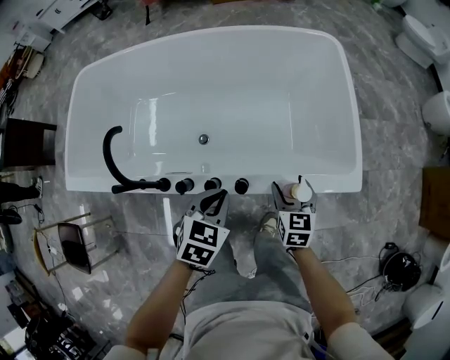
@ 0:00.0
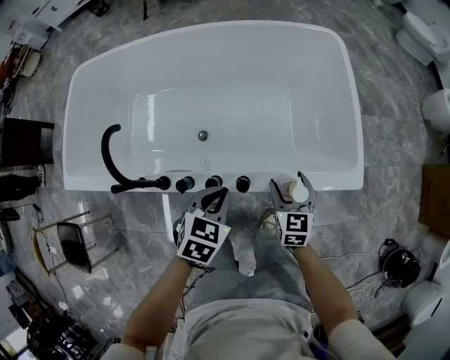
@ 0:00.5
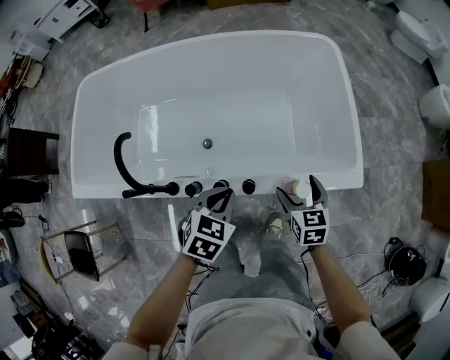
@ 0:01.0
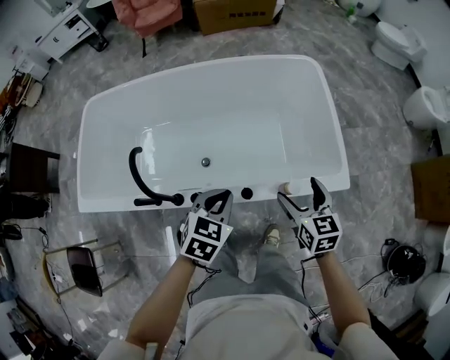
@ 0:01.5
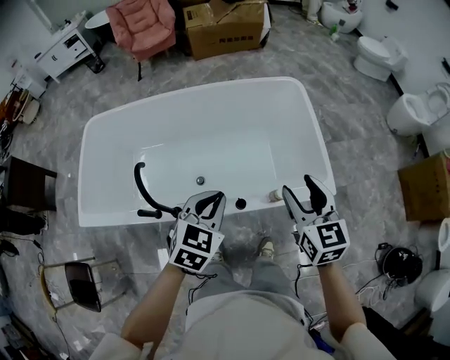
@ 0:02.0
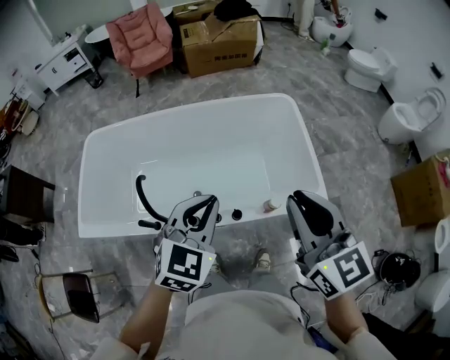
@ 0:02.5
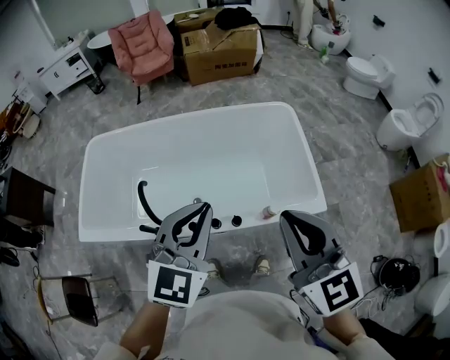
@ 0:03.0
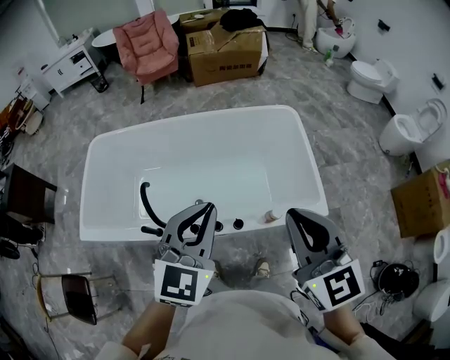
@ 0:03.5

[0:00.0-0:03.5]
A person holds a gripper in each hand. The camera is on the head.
0:00.0 to 0:02.0: The right gripper shifts about 30 cm upward. The left gripper moves upward, about 20 cm, and rotates some 20 degrees.
0:02.0 to 0:03.5: The grippers both shift upward by roughly 20 cm. The right gripper closes its fingers, while the left gripper swivels about 20 degrees.

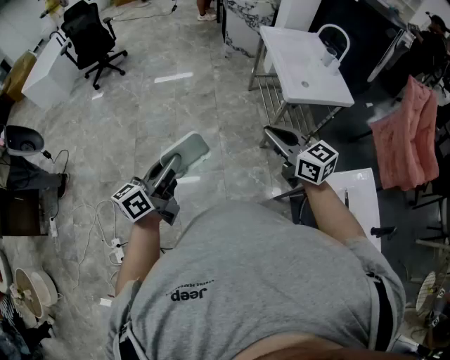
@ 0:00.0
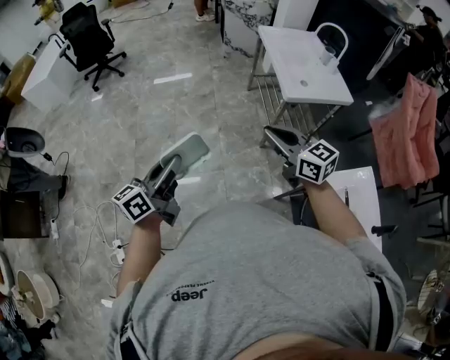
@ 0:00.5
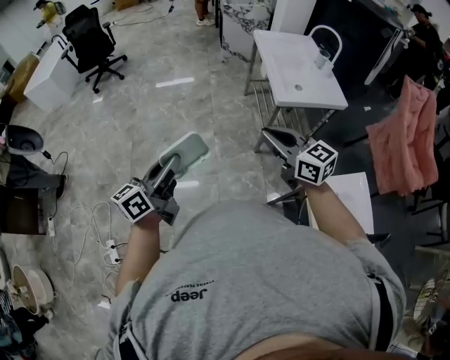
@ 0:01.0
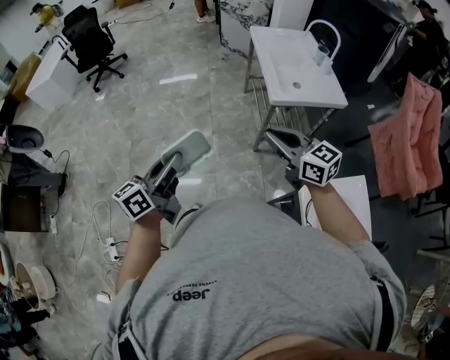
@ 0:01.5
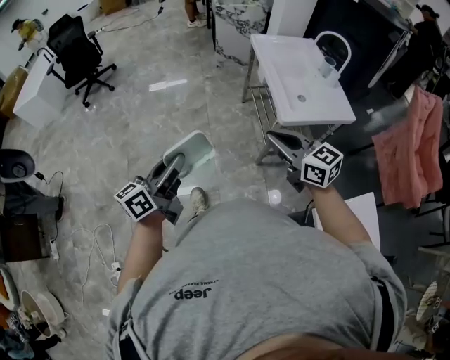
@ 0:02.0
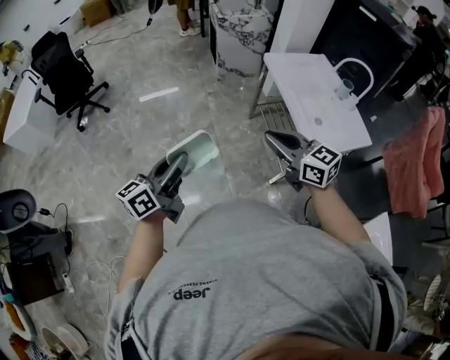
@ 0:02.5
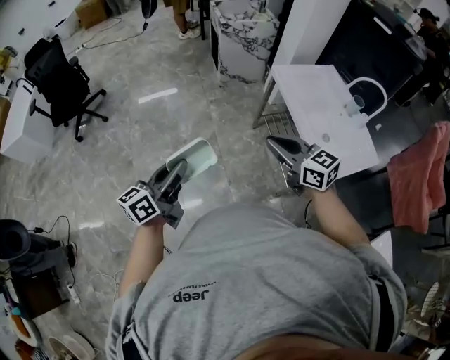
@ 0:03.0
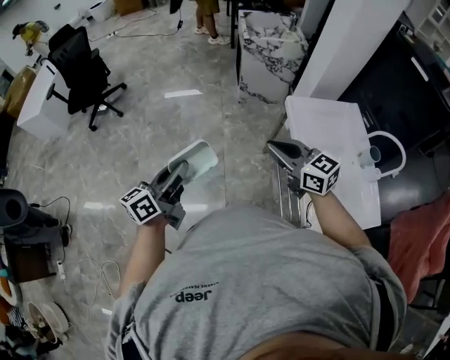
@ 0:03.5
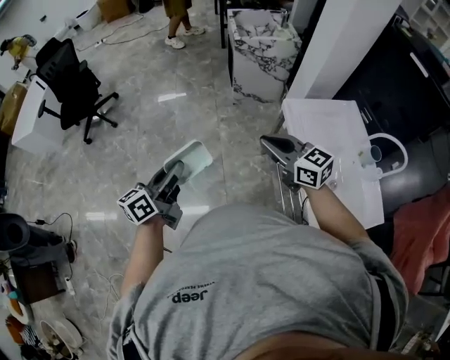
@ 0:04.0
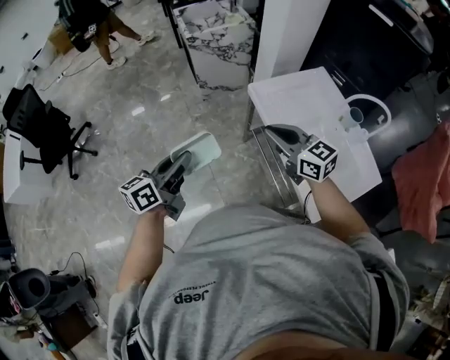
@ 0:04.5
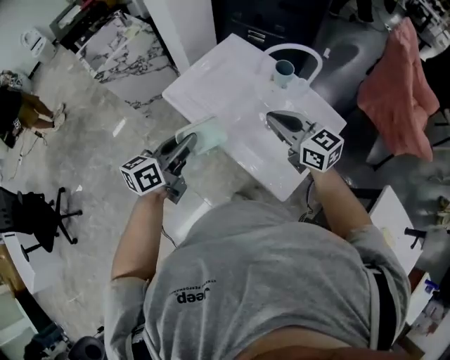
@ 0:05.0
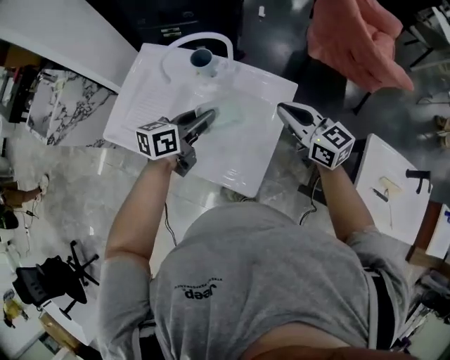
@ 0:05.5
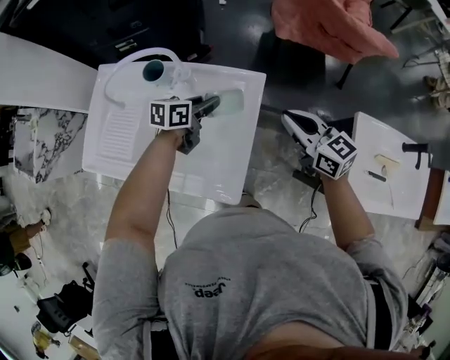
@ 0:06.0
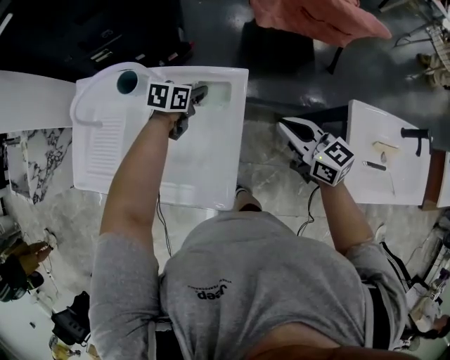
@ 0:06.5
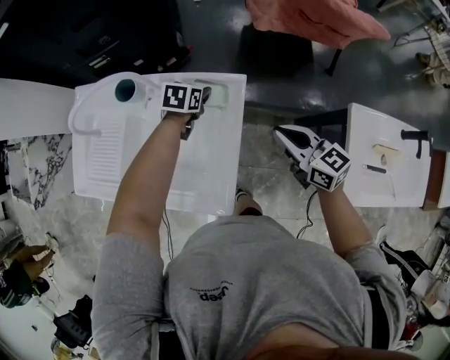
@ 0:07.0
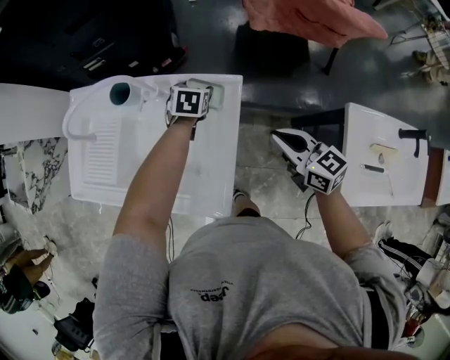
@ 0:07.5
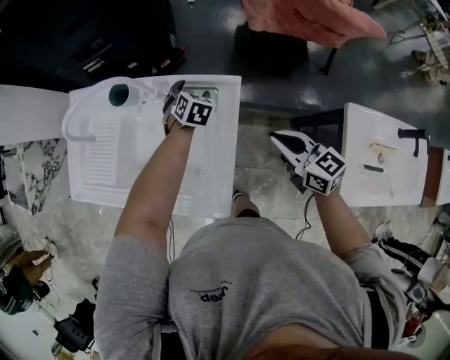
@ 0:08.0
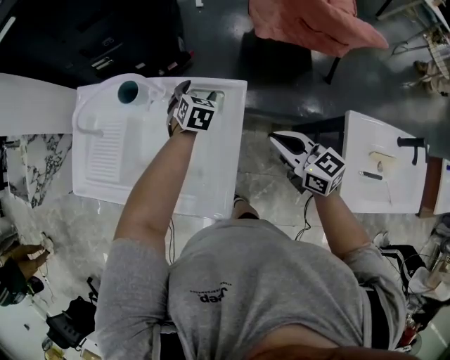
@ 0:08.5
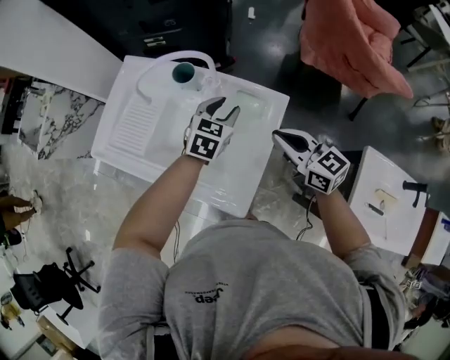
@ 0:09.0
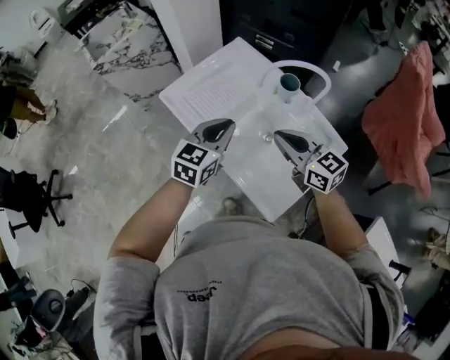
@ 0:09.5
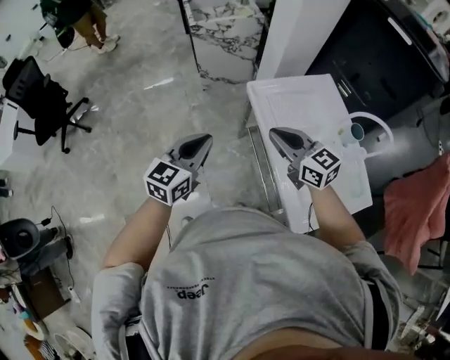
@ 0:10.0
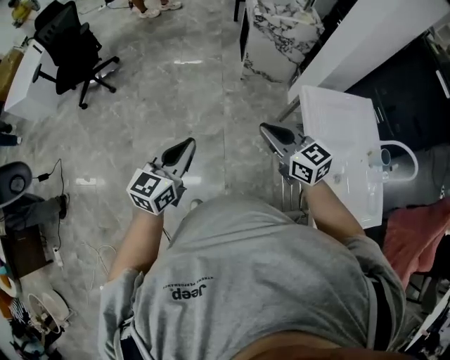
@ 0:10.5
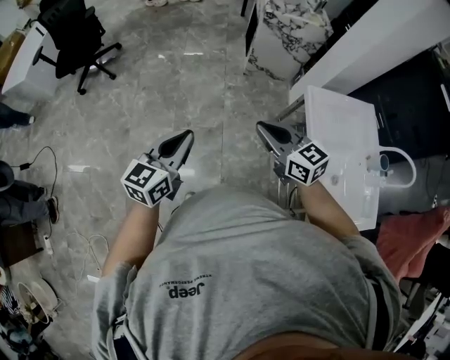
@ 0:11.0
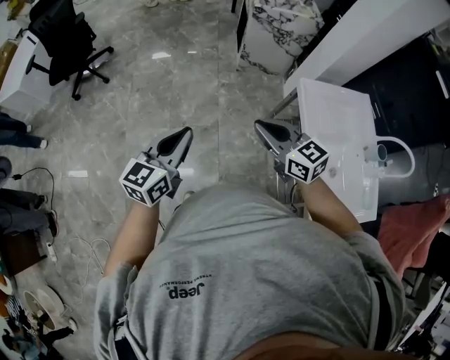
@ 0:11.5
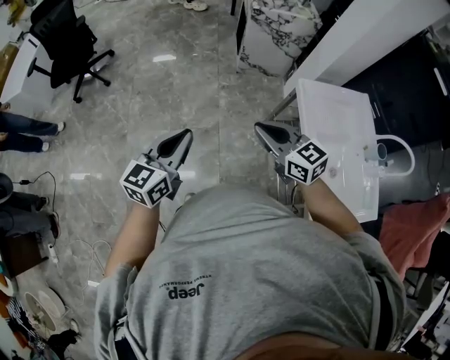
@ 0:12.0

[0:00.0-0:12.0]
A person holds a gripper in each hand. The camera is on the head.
0:00.0 to 0:02.0: The grippers both shift forward and to the right by some 20 cm.
0:02.0 to 0:04.0: Both grippers are carried forward, about 60 cm.
0:04.0 to 0:06.0: Both grippers are carried some 70 cm. The left gripper changes its angle by approximately 100 degrees; the right gripper swivels approximately 80 degrees.
0:06.0 to 0:08.0: The left gripper travels downward and forward by some 15 cm, turns by approximately 60 degrees, and opens. The right gripper goes about 5 cm downward.
0:08.0 to 0:10.0: Both grippers are carried approximately 60 cm. The left gripper angles its fingers upward, by some 40 degrees, and closes up; the right gripper turns by about 70 degrees.
0:10.0 to 0:12.0: The two grippers go roughly 25 cm to the left.

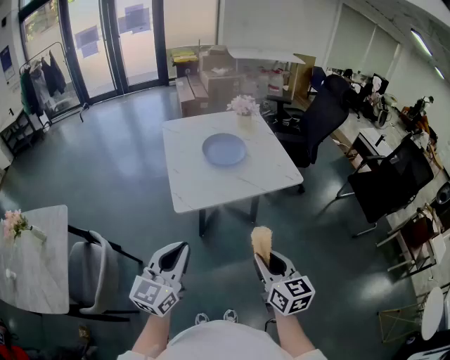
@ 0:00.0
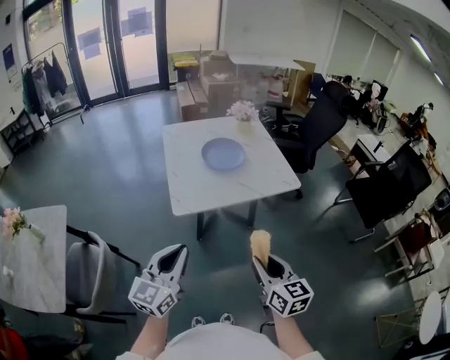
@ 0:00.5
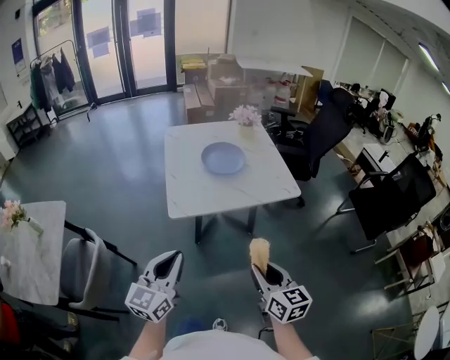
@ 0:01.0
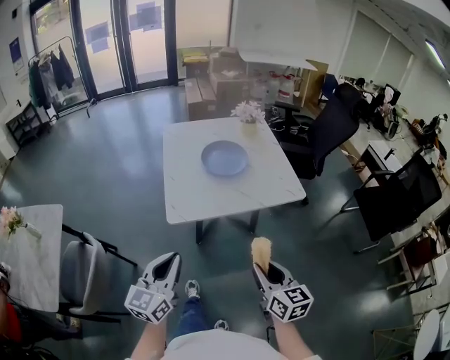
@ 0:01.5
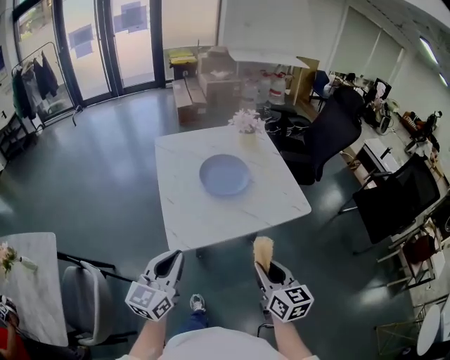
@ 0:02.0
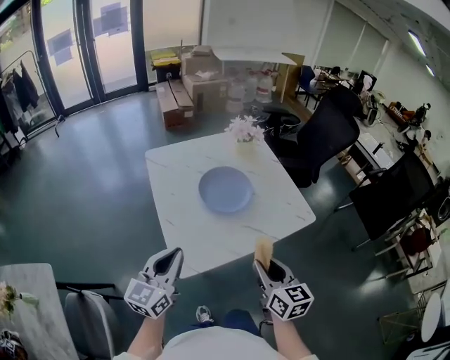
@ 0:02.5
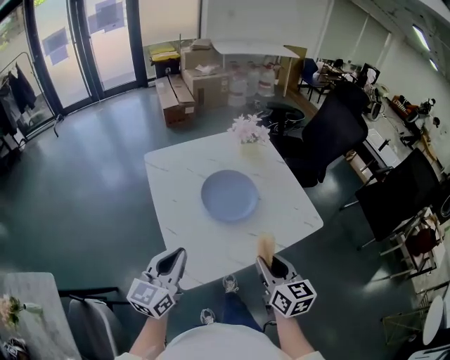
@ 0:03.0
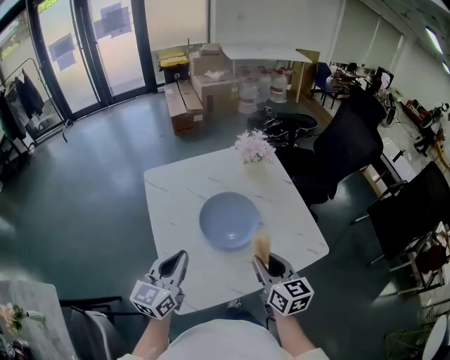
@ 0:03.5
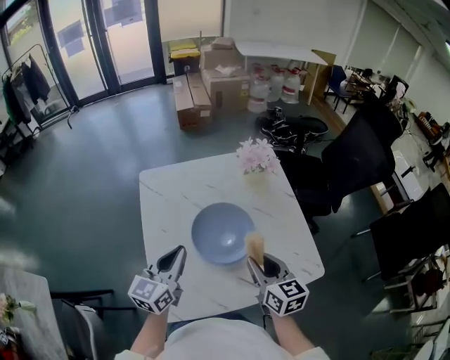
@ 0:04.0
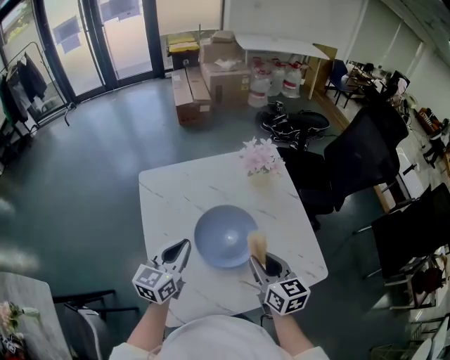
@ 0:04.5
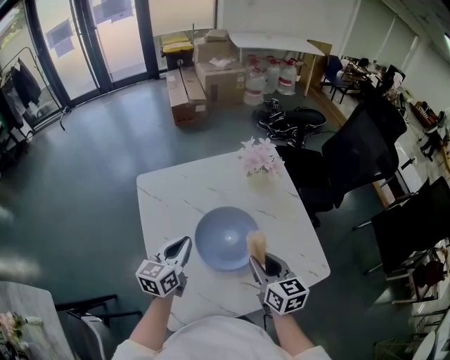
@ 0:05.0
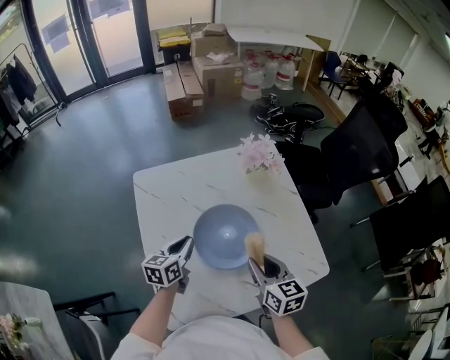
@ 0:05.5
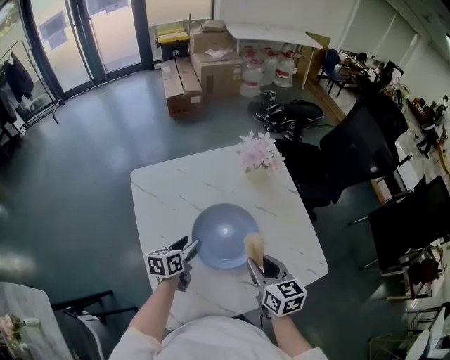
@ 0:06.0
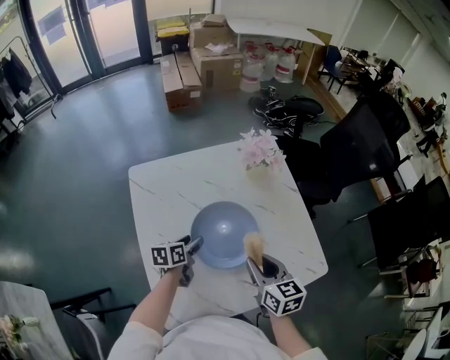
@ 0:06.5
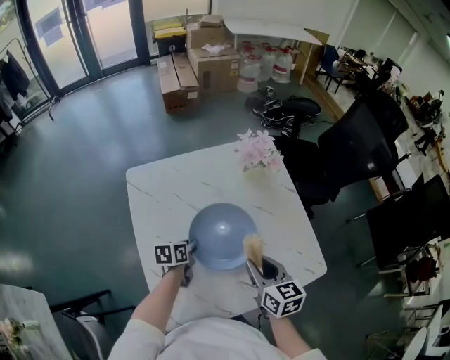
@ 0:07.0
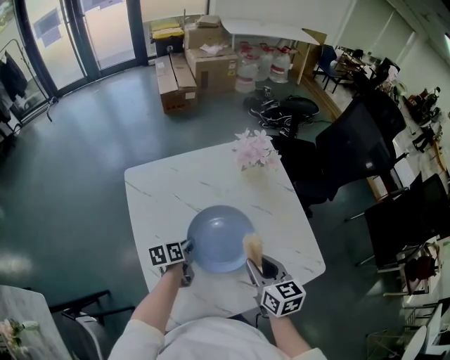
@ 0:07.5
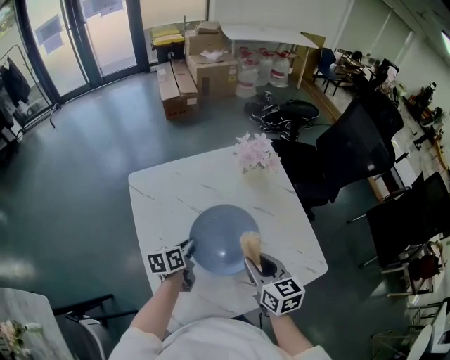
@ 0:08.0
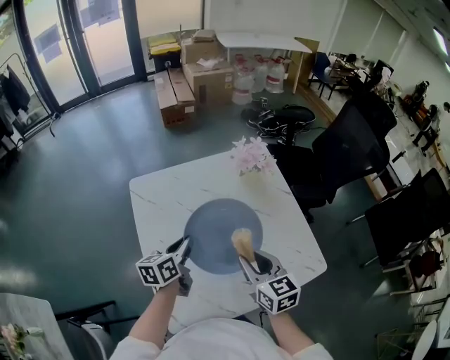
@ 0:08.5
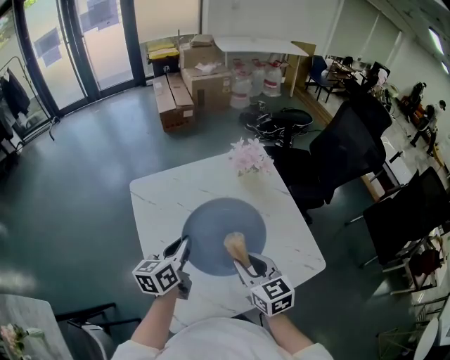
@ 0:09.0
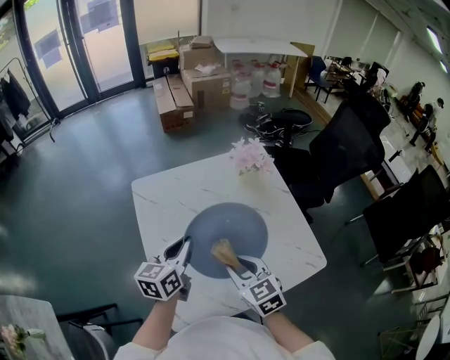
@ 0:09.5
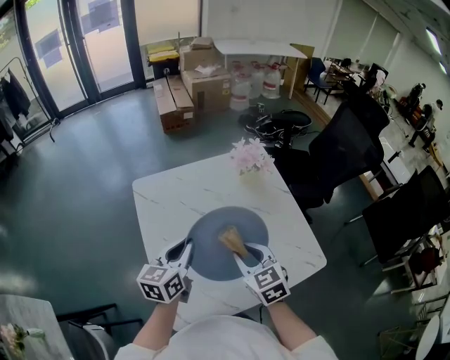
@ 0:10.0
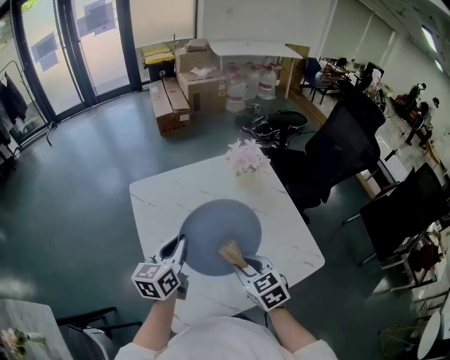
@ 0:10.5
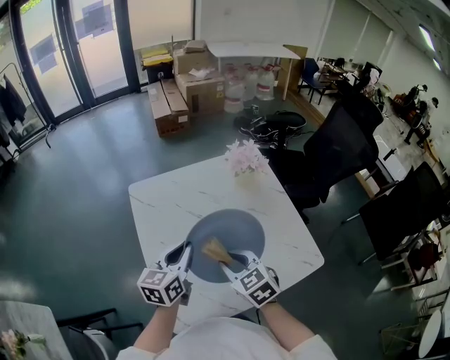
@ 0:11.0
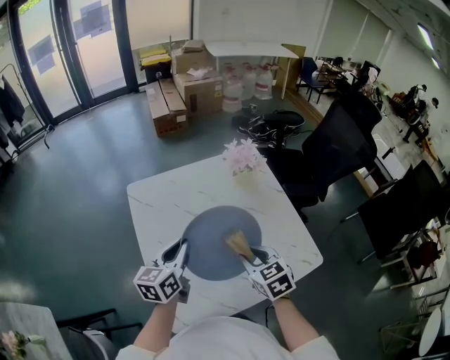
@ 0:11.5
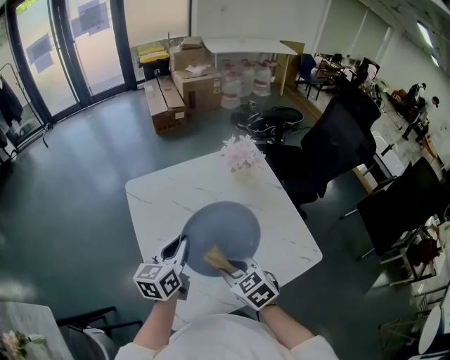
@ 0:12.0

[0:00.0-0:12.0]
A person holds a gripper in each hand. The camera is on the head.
0:00.0 to 0:02.0: Both grippers move forward, roughly 15 cm.
0:02.0 to 0:04.0: Both grippers move forward, about 35 cm.
0:04.0 to 0:06.0: The left gripper moves downward and forward, some 20 cm, turns by approximately 40 degrees, and opens up; the right gripper moves some 5 cm.
0:06.0 to 0:08.0: The left gripper closes its fingers.
0:08.0 to 0:10.0: The right gripper moves to the left, roughly 5 cm, and changes its angle by some 20 degrees. The left gripper moves upward, about 15 cm, and rotates some 30 degrees.
0:10.0 to 0:12.0: The right gripper swings left and right, approximately 10 cm each way, with 2 reversals.
